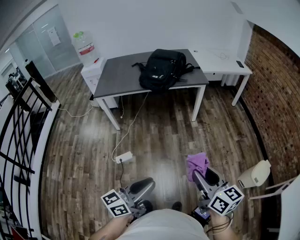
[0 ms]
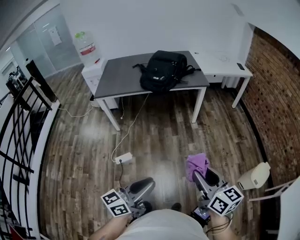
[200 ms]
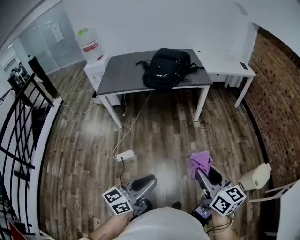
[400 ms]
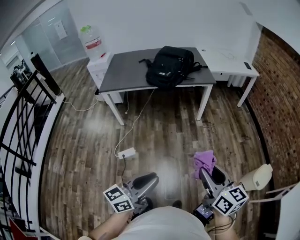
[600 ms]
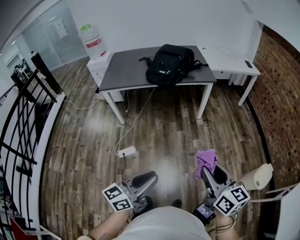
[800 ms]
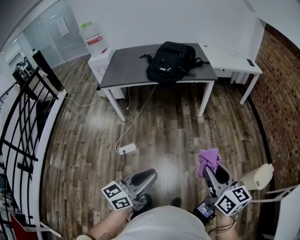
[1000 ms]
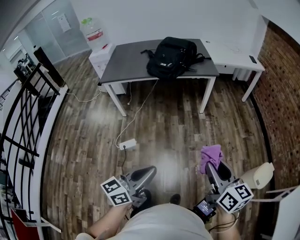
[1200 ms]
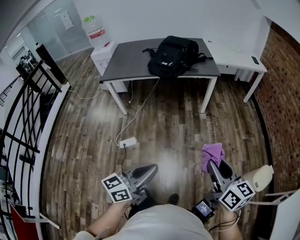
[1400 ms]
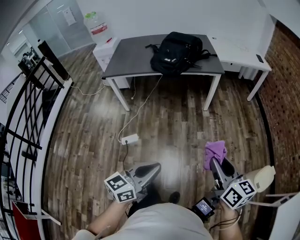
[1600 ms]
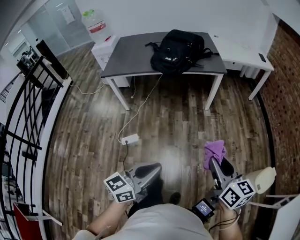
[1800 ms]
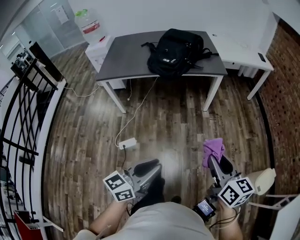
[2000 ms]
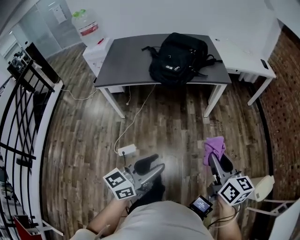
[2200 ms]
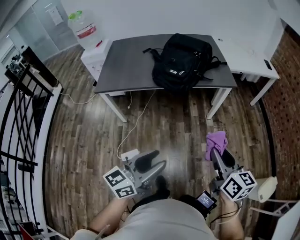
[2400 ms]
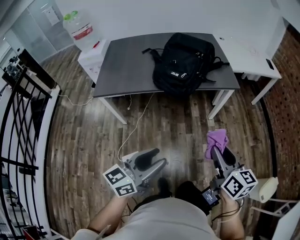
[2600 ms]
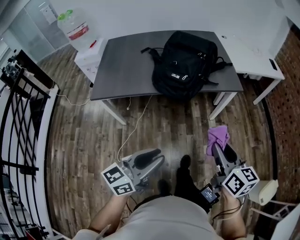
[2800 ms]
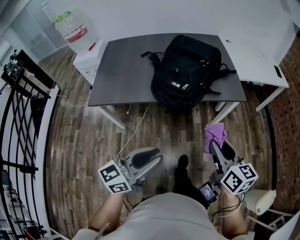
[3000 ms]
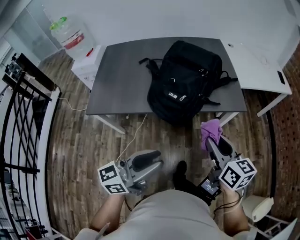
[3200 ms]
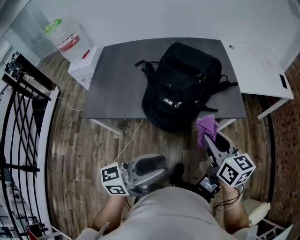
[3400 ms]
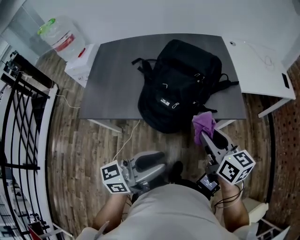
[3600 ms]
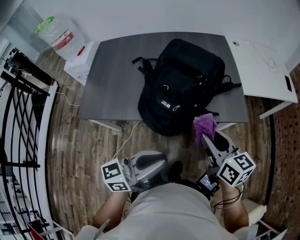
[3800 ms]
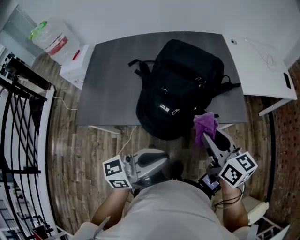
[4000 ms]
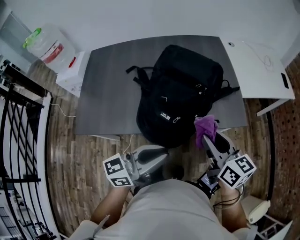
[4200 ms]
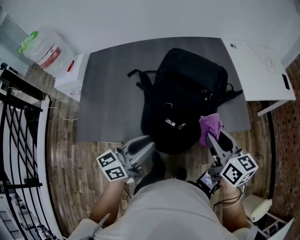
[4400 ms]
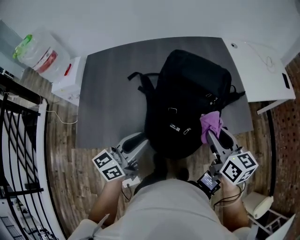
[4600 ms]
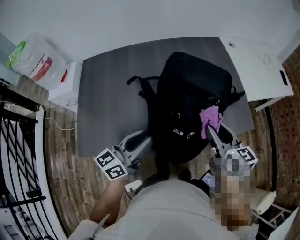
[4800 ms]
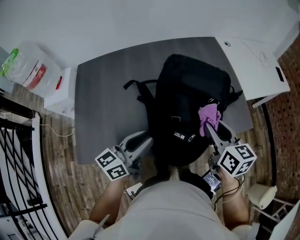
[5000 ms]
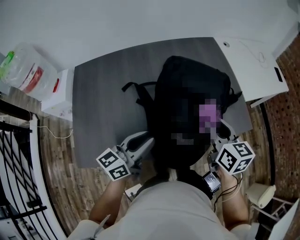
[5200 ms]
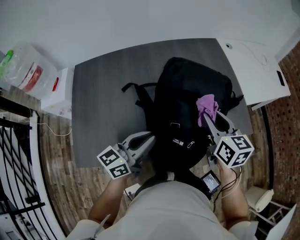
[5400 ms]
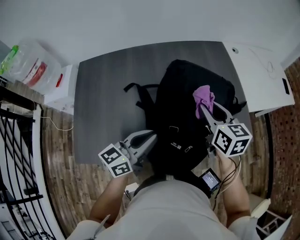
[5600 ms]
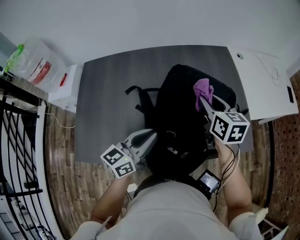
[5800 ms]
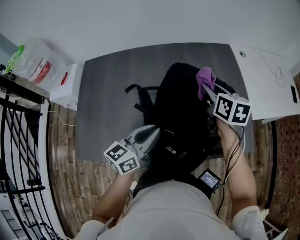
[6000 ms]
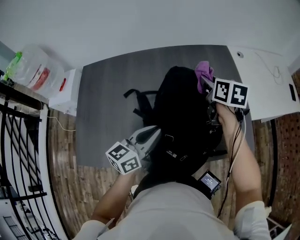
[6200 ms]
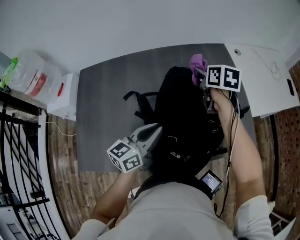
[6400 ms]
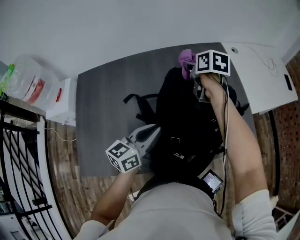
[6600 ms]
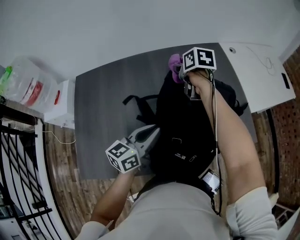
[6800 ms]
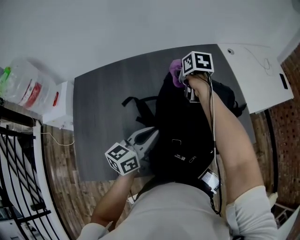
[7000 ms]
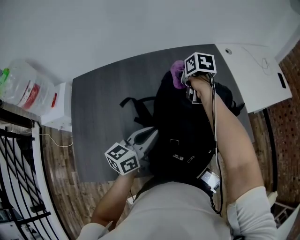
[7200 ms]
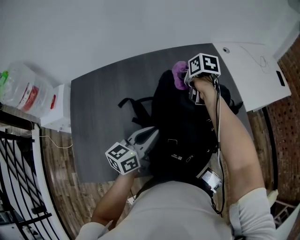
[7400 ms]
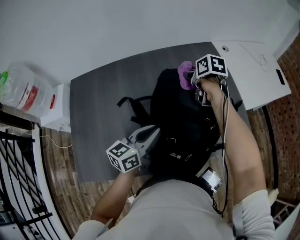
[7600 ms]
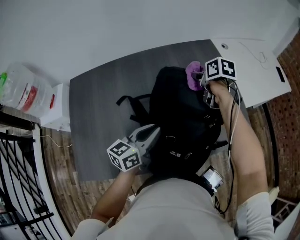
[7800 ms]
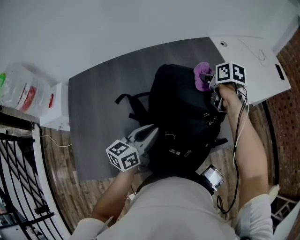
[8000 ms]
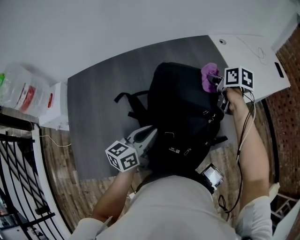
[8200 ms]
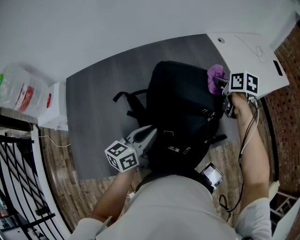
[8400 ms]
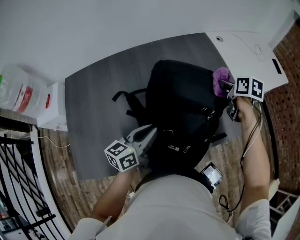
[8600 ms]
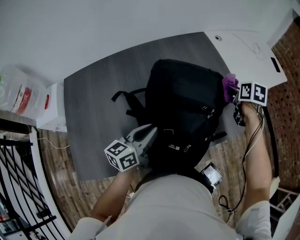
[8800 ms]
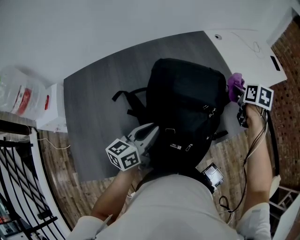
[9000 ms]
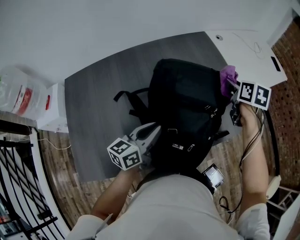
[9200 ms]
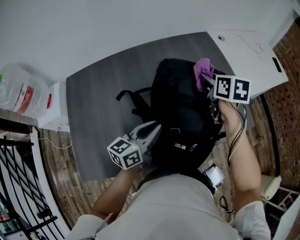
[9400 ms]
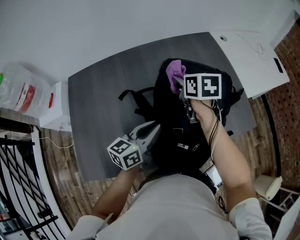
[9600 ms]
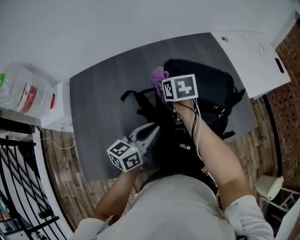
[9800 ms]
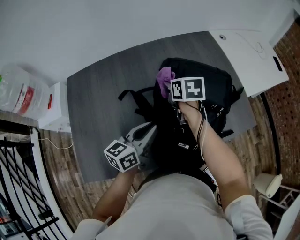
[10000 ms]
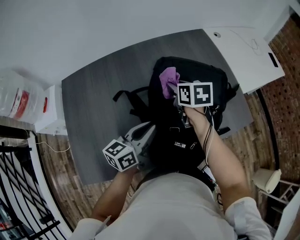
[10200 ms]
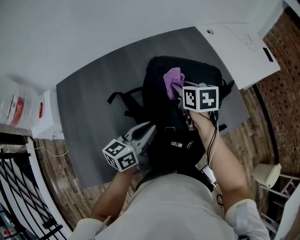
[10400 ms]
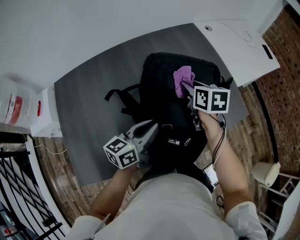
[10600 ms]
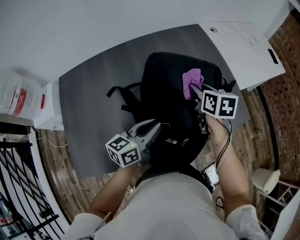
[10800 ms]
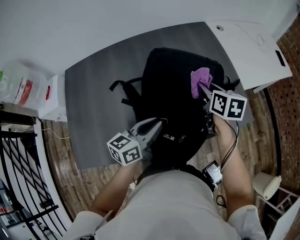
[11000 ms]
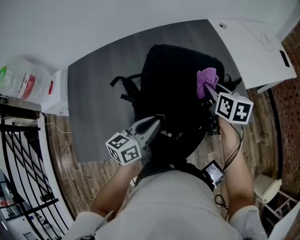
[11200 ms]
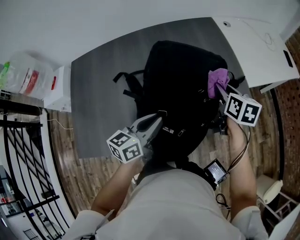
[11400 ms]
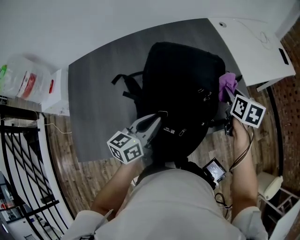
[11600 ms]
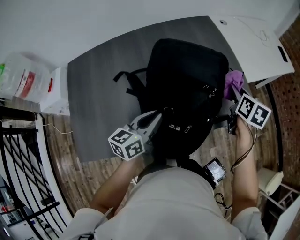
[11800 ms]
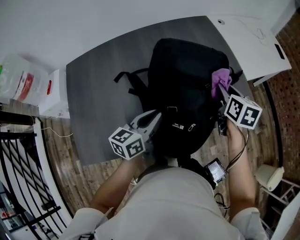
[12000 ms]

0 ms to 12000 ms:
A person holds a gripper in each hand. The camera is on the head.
0 ms to 1600 ms: The left gripper is displaced to the right by some 5 cm, while the right gripper shifts approximately 10 cm to the right and forward.
1600 ms to 3000 ms: The two grippers travel together, forward and to the left, about 50 cm. The left gripper opens and closes again.
3000 ms to 4400 ms: Both grippers travel together forward, approximately 30 cm.
4400 ms to 6000 ms: The right gripper goes about 30 cm forward. The left gripper is displaced forward by roughly 20 cm.
6000 ms to 7600 ms: The right gripper is displaced forward and downward by roughly 10 cm, travels to the left and back again, approximately 10 cm each way, and changes its angle by roughly 20 degrees.
7600 ms to 9000 ms: The right gripper heads to the right, covering approximately 25 cm, and swivels about 30 degrees.
9000 ms to 10400 ms: The right gripper moves to the left, roughly 25 cm, and changes its angle by roughly 20 degrees.
10400 ms to 12000 ms: The right gripper is displaced to the right by approximately 15 cm. The left gripper goes to the right and returns, approximately 10 cm each way.

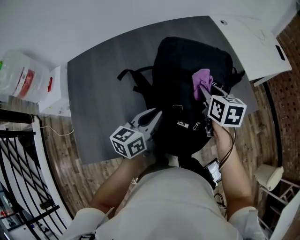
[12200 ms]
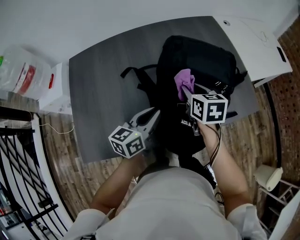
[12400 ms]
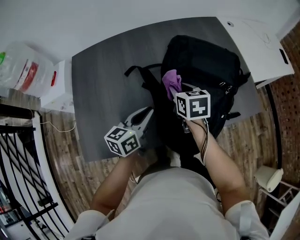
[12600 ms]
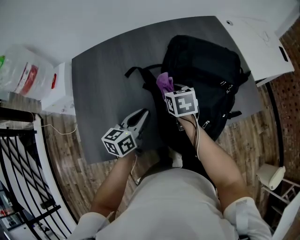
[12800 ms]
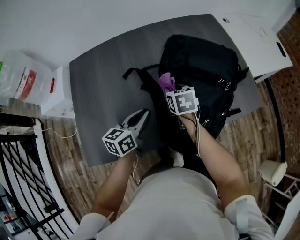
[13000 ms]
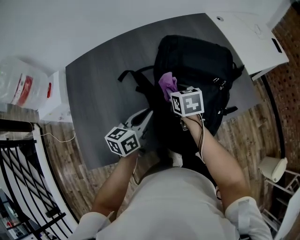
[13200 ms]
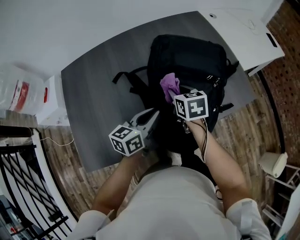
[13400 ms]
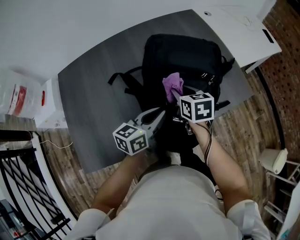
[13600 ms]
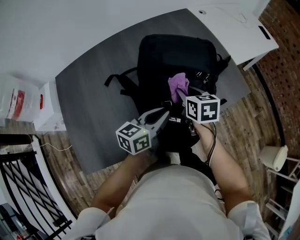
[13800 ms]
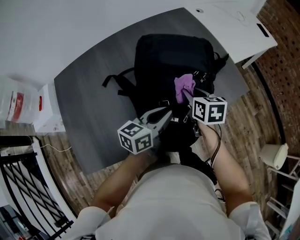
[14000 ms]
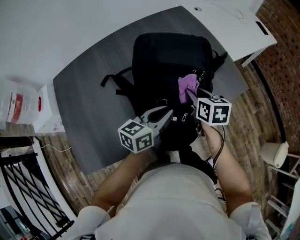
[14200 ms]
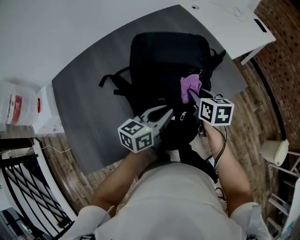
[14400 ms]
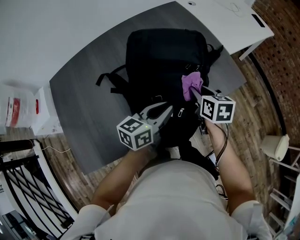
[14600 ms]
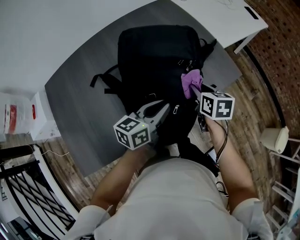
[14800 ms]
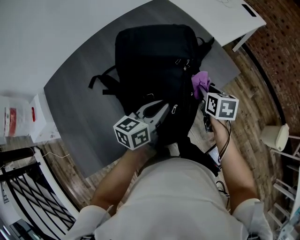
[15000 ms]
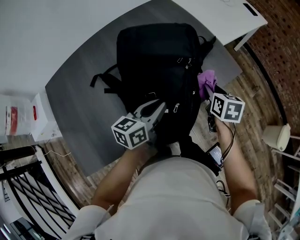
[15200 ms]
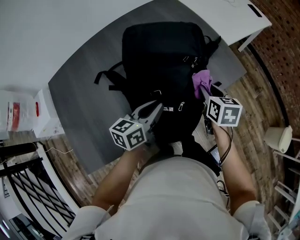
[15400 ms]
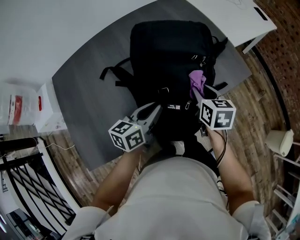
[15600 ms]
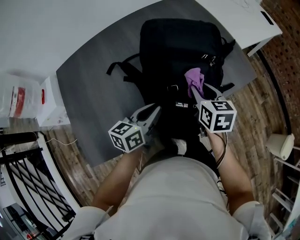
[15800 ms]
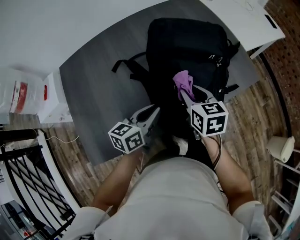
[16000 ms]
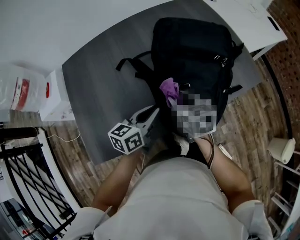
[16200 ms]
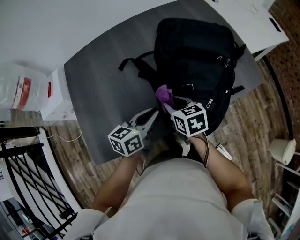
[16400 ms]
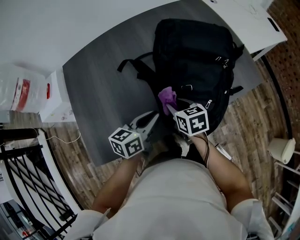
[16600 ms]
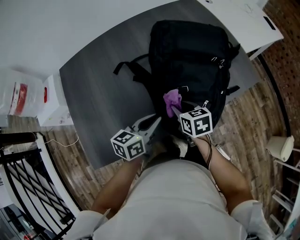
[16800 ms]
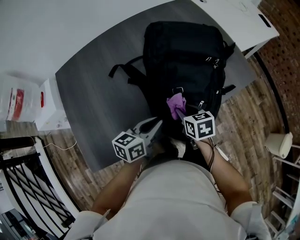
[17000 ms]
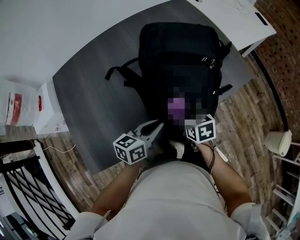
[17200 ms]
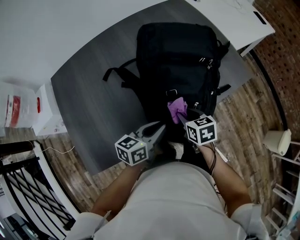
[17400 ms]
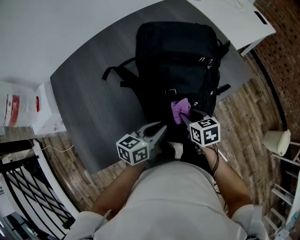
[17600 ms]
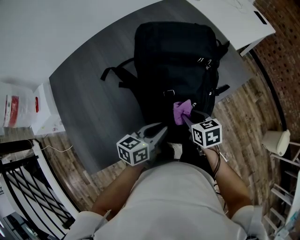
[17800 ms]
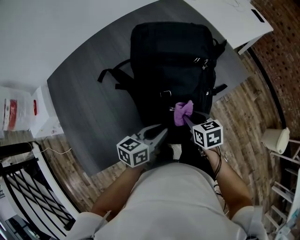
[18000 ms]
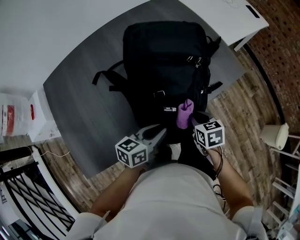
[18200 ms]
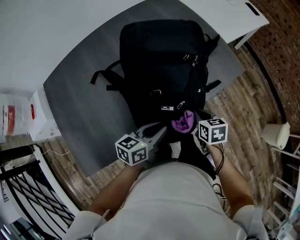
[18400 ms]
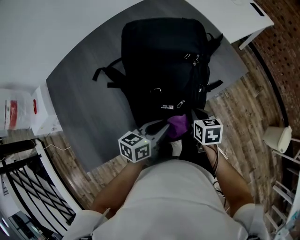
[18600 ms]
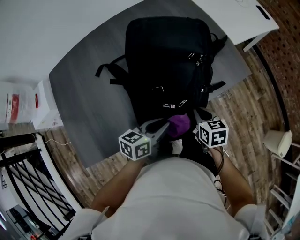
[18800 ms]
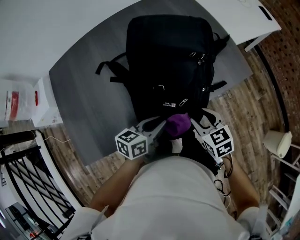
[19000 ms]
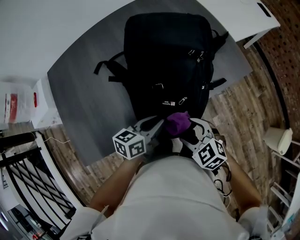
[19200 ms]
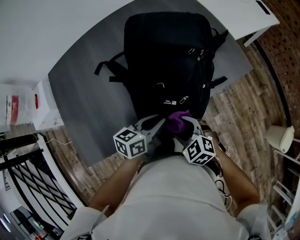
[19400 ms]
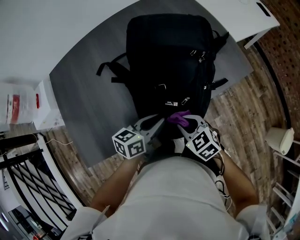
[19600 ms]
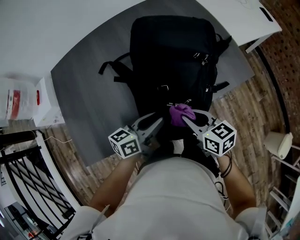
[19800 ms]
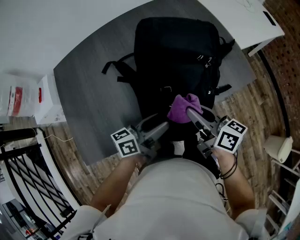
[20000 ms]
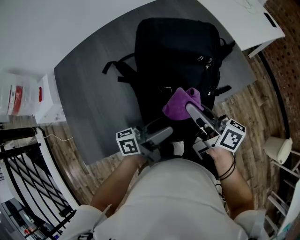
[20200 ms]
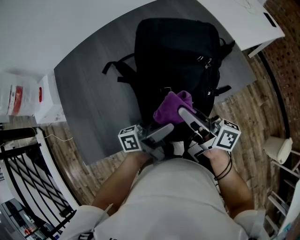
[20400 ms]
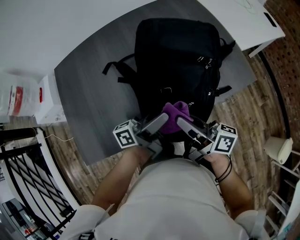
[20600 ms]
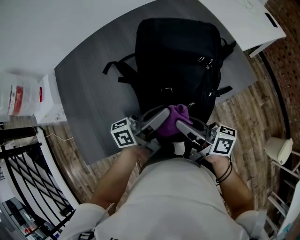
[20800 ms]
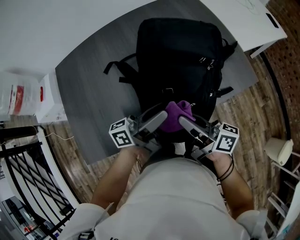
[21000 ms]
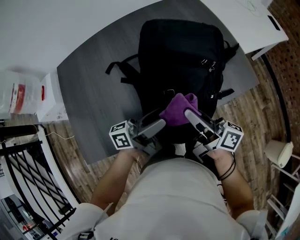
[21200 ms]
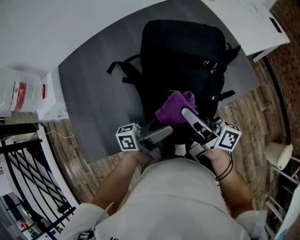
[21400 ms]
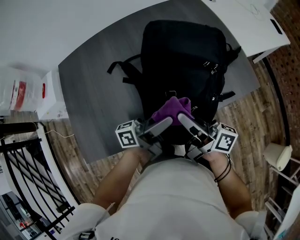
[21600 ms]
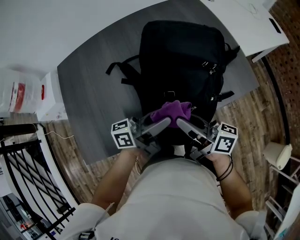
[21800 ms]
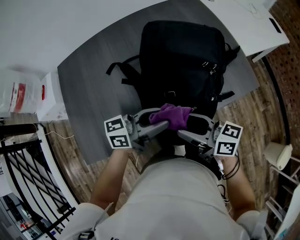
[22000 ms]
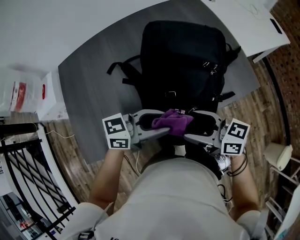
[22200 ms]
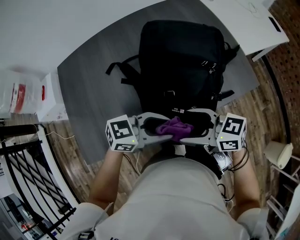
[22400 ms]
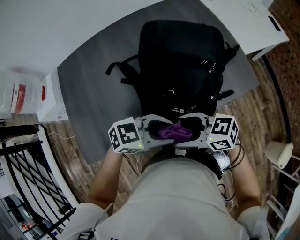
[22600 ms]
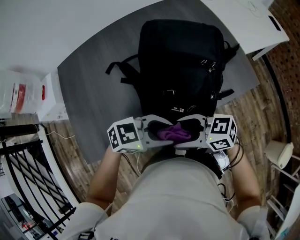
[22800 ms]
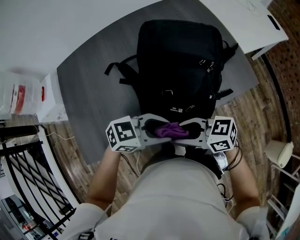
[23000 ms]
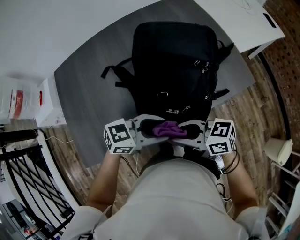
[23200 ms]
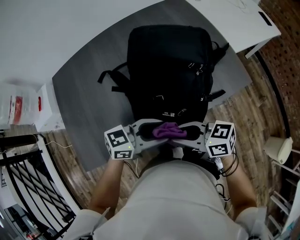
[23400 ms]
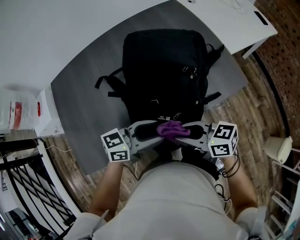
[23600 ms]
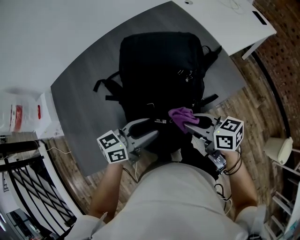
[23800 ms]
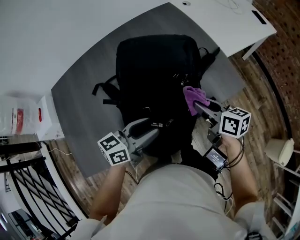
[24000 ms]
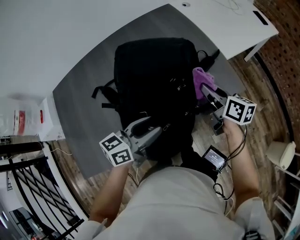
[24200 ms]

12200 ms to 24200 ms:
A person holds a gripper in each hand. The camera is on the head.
12200 ms to 13800 ms: The right gripper moves about 20 cm to the left and comes back, while the left gripper is displaced to the right by about 5 cm.
13800 ms to 15200 ms: The right gripper goes some 20 cm to the right, and changes its angle by approximately 20 degrees.
15200 ms to 16600 ms: The right gripper shifts some 30 cm to the left, and turns by roughly 30 degrees. Meanwhile the left gripper moves to the left and backward, roughly 20 cm.
16600 ms to 18200 ms: The right gripper is displaced to the right by some 20 cm. The left gripper heads to the right, covering approximately 10 cm.
18200 ms to 19800 ms: The right gripper moves upward and to the left, approximately 10 cm, travels backward and back again, roughly 10 cm each way, turns by some 30 degrees, and opens, then closes again.
19800 ms to 21200 ms: The grippers both shift upward by some 10 cm. The right gripper angles its fingers upward, by about 40 degrees; the left gripper rotates approximately 30 degrees, and opens its fingers.
21200 ms to 22600 ms: The left gripper ends up some 10 cm from where it was, and tilts its fingers roughly 40 degrees downward, while the right gripper changes place by roughly 10 cm, swivels some 60 degrees, and opens.
22600 ms to 24200 ms: The right gripper moves approximately 35 cm, swivels approximately 60 degrees, and closes its fingers, while the left gripper moves roughly 10 cm, and turns by some 40 degrees.
